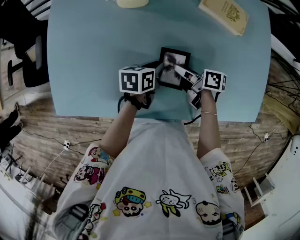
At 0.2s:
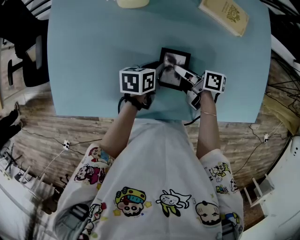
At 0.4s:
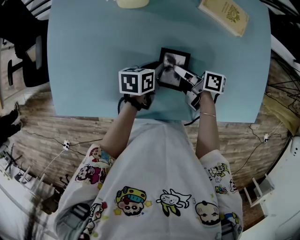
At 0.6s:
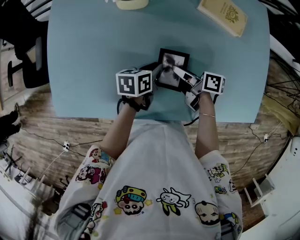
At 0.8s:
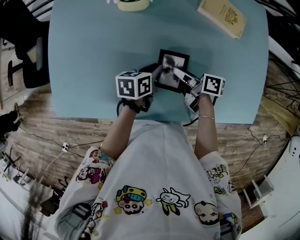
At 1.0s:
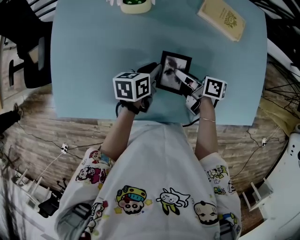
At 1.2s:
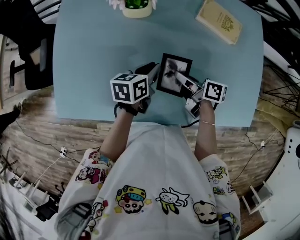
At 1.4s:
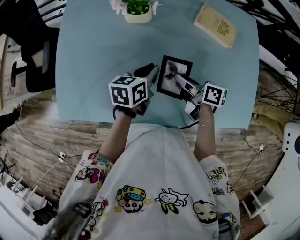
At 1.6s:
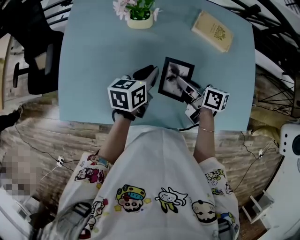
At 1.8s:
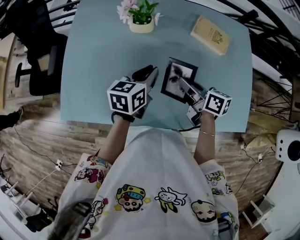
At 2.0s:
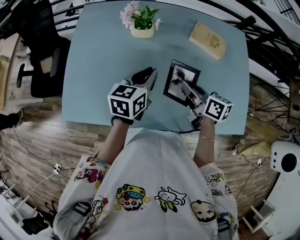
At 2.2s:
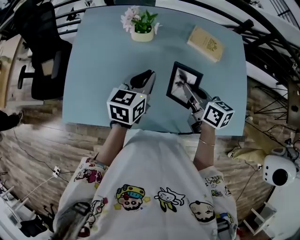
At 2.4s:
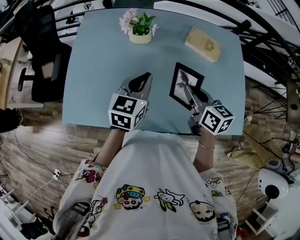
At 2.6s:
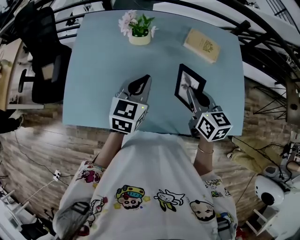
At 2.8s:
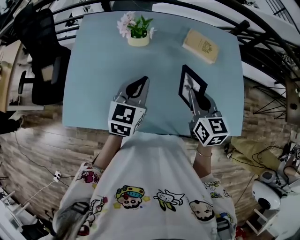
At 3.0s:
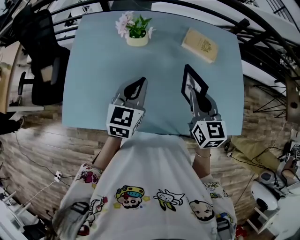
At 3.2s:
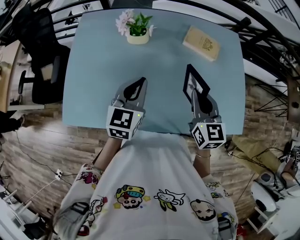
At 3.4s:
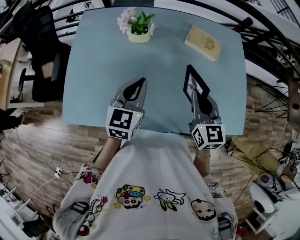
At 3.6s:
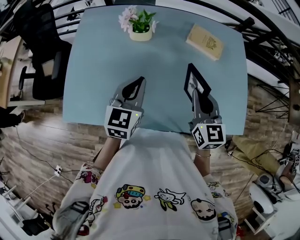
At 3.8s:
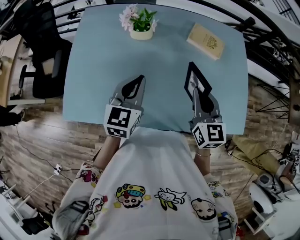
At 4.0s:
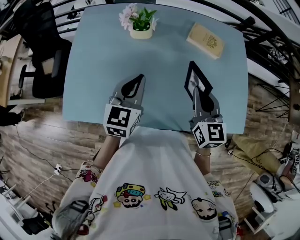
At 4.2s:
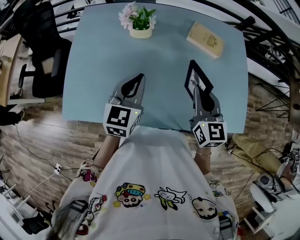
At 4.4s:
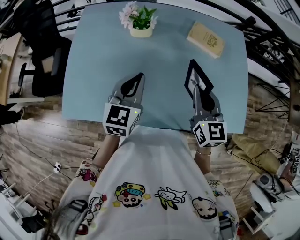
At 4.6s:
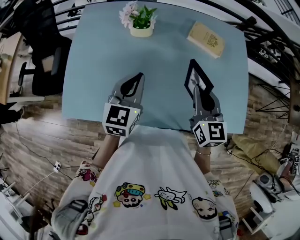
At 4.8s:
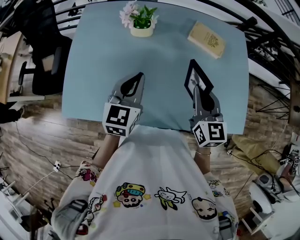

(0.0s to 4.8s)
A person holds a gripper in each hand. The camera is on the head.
0.0s - 1.6s: The grippers both shift upward by roughly 10 cm. The left gripper turns by about 20 degrees.
1.6s - 3.2s: The right gripper moves upward and to the right, approximately 15 cm, and changes its angle by some 60 degrees. Meanwhile the left gripper travels upward and backward by some 15 cm, and turns by approximately 30 degrees.
3.2s - 4.8s: The grippers move only a little.

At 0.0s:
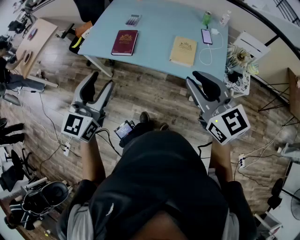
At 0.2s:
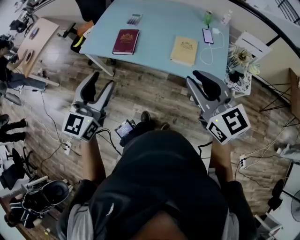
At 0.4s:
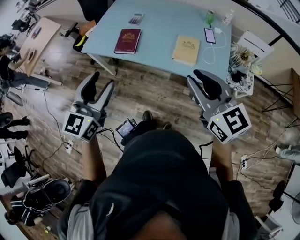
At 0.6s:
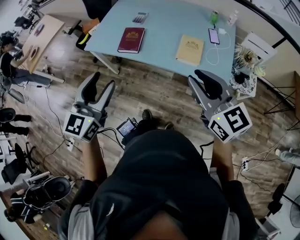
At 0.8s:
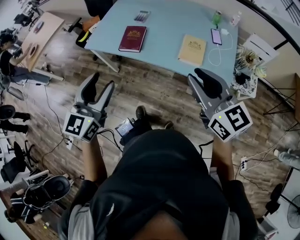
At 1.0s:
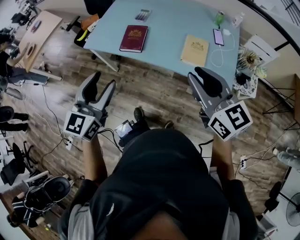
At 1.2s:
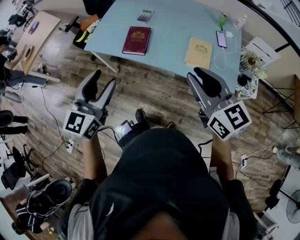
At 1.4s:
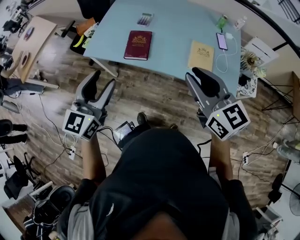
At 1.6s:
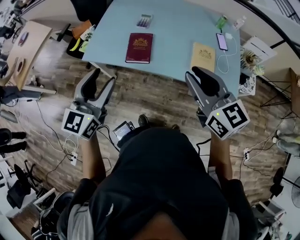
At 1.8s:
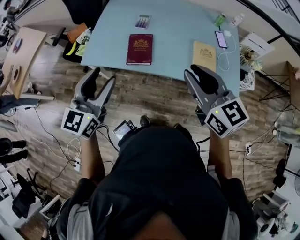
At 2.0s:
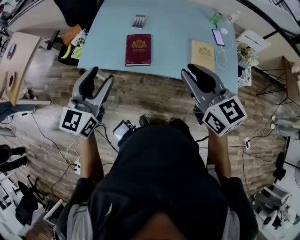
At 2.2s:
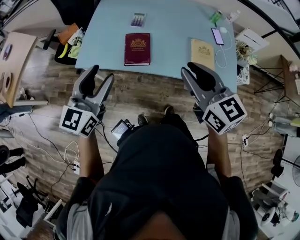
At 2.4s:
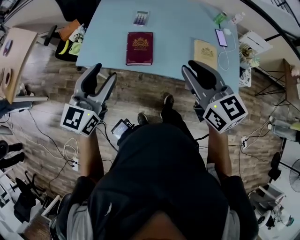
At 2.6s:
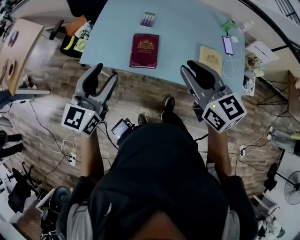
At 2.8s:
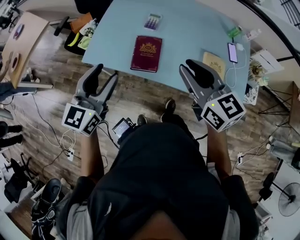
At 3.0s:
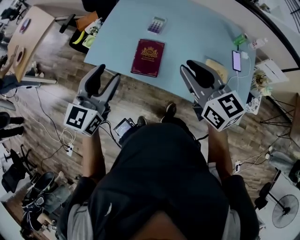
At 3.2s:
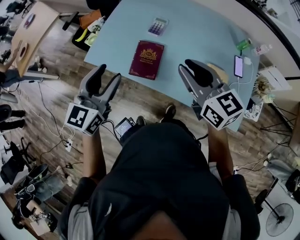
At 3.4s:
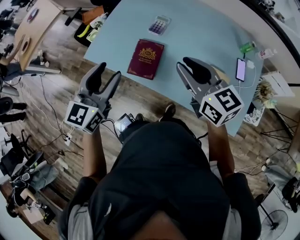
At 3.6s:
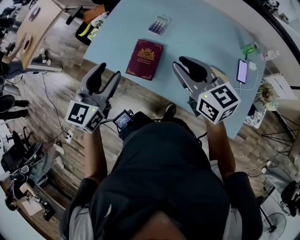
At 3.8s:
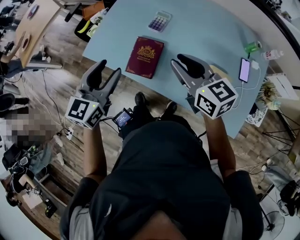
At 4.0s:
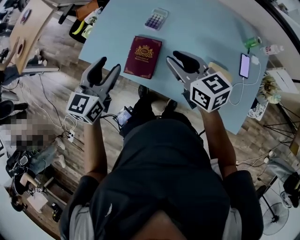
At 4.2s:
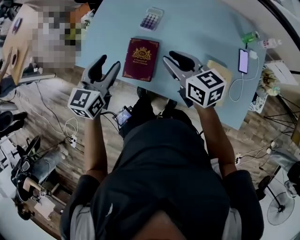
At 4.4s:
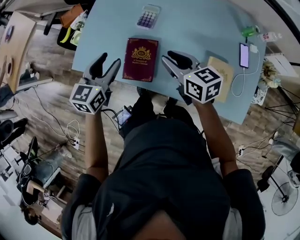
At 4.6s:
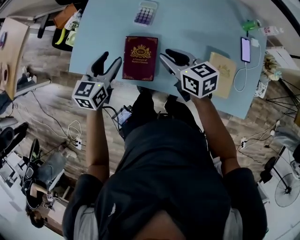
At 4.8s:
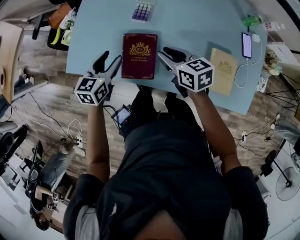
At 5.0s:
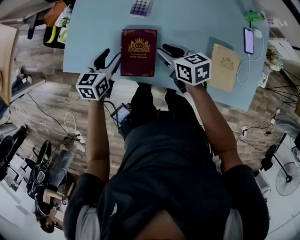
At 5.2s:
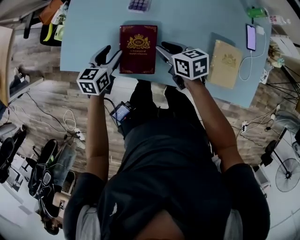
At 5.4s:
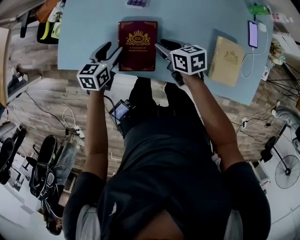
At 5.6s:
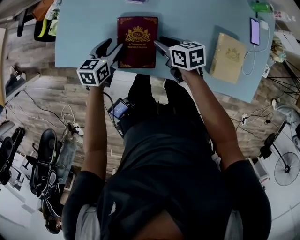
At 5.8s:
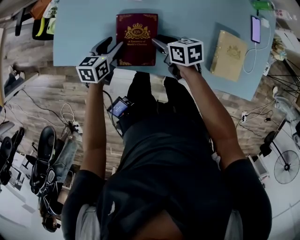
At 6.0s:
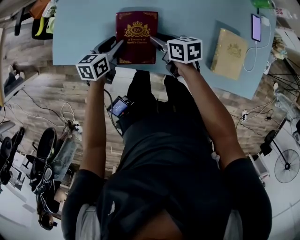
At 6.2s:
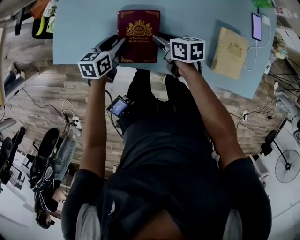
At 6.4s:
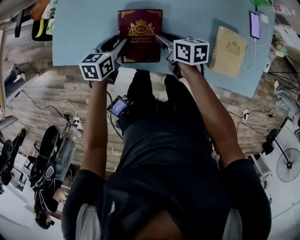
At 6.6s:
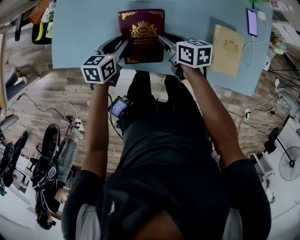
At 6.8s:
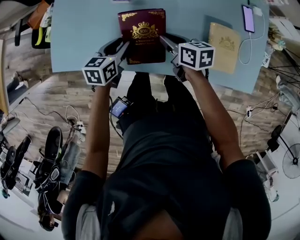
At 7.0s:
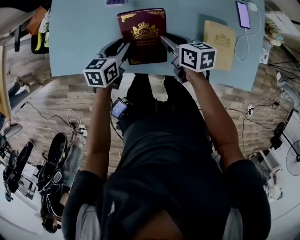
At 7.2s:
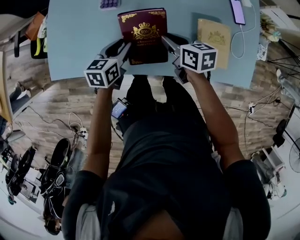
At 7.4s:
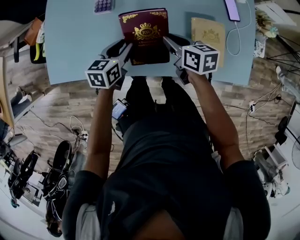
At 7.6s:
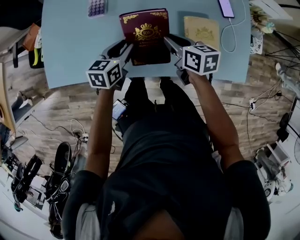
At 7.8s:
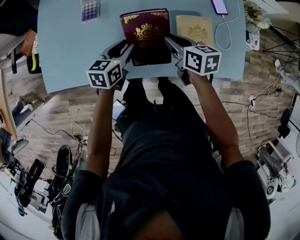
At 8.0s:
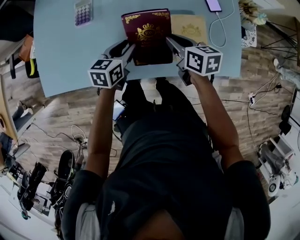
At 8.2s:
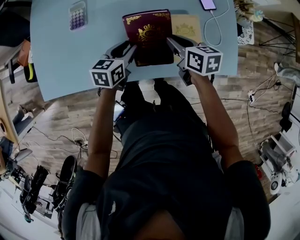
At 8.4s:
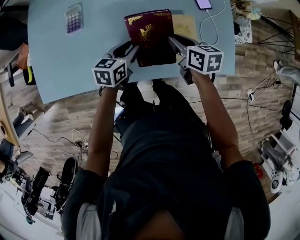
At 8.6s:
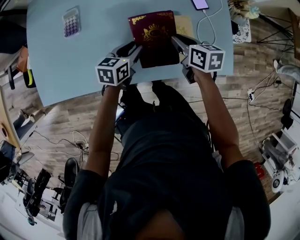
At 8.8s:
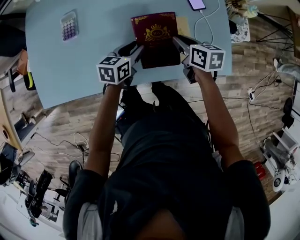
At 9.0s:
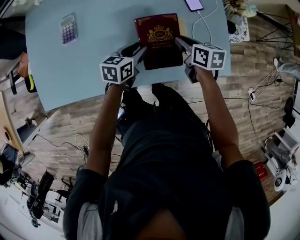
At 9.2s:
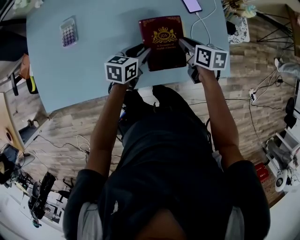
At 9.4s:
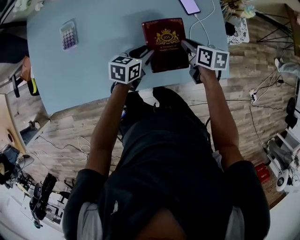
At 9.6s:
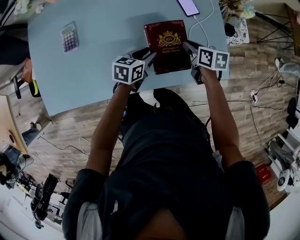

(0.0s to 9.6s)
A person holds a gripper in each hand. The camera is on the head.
0.0s - 1.6s: The right gripper moves to the left and forward, roughly 20 cm, while the left gripper shifts roughly 20 cm forward and to the left.
1.6s - 3.2s: The two grippers go roughly 20 cm forward.
3.2s - 4.8s: Both grippers travel together downward and forward, roughly 30 cm. The left gripper rotates roughly 30 degrees; the right gripper swivels about 30 degrees.
4.8s - 6.4s: Both grippers move downward, roughly 15 cm. The right gripper rotates approximately 20 degrees.
6.4s - 8.0s: Both grippers move to the right, roughly 25 cm.
8.0s - 9.6s: The grippers both shift to the right by approximately 20 cm.

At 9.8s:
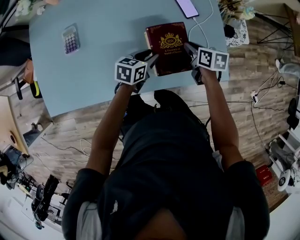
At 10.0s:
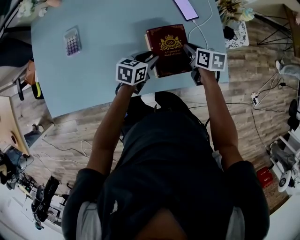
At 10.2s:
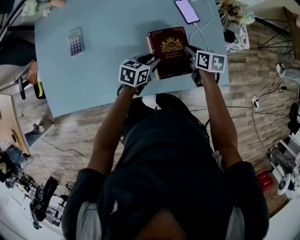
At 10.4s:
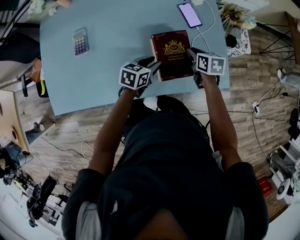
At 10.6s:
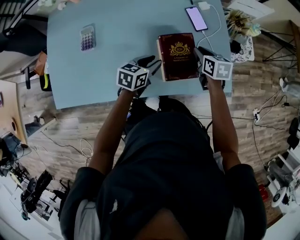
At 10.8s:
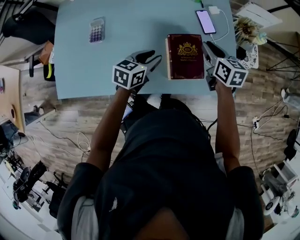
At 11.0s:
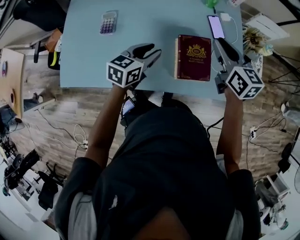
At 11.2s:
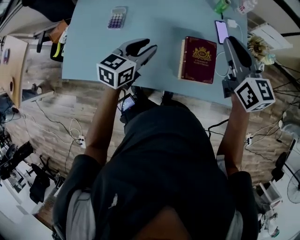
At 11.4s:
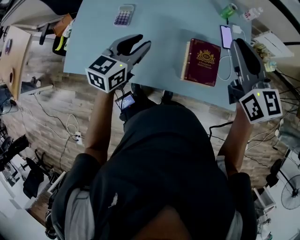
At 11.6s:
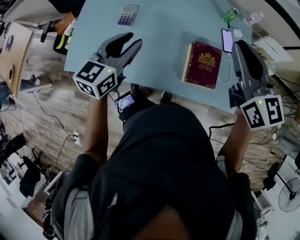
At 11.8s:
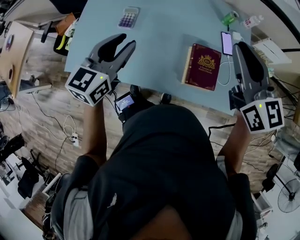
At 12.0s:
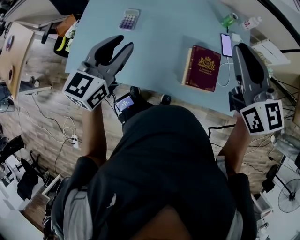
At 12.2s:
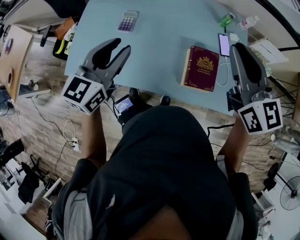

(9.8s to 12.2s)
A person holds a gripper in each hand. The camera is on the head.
9.8s - 11.0s: The left gripper goes some 20 cm upward and to the left; the right gripper heads upward, covering some 25 cm, and rotates roughly 40 degrees.
11.0s - 12.2s: Both grippers travel together upward and to the left, some 25 cm. The right gripper changes its angle by approximately 20 degrees, while the left gripper rotates about 30 degrees.

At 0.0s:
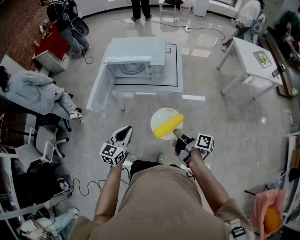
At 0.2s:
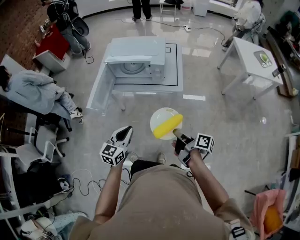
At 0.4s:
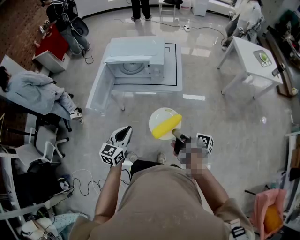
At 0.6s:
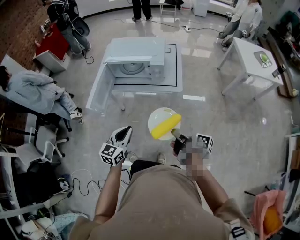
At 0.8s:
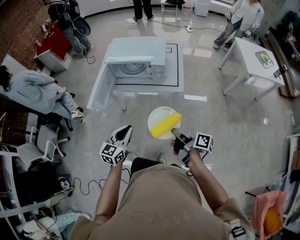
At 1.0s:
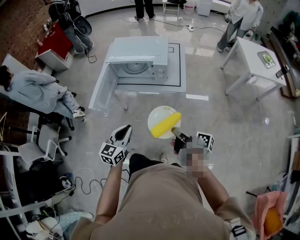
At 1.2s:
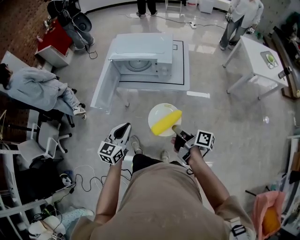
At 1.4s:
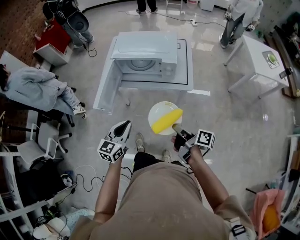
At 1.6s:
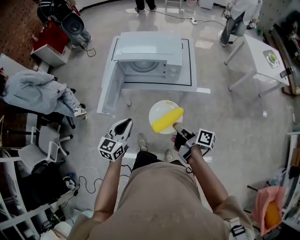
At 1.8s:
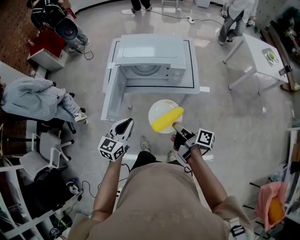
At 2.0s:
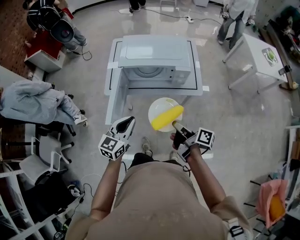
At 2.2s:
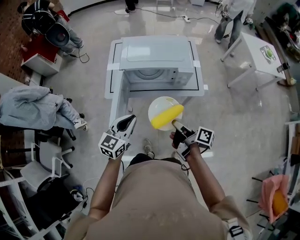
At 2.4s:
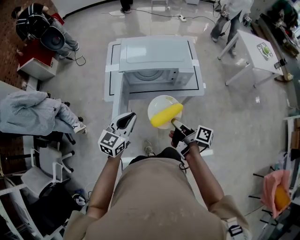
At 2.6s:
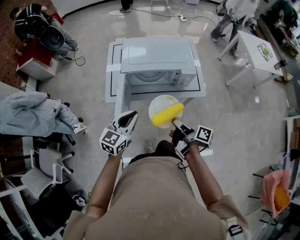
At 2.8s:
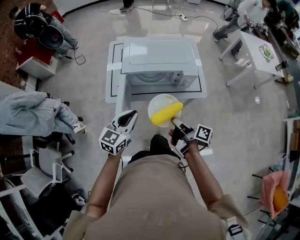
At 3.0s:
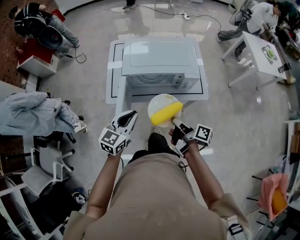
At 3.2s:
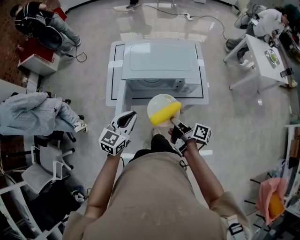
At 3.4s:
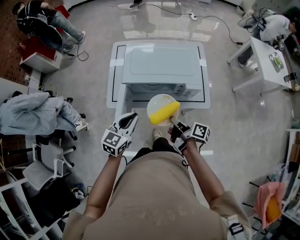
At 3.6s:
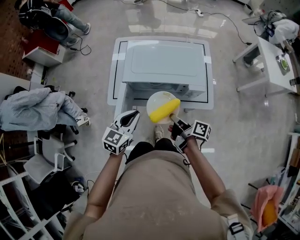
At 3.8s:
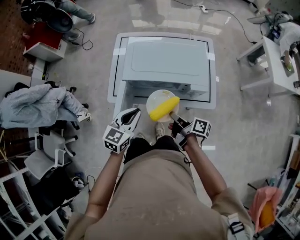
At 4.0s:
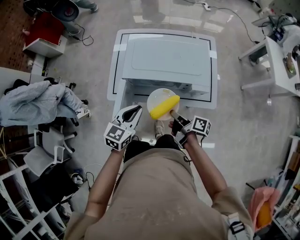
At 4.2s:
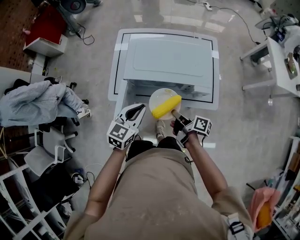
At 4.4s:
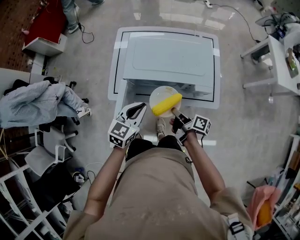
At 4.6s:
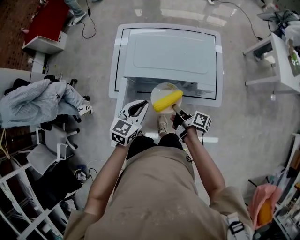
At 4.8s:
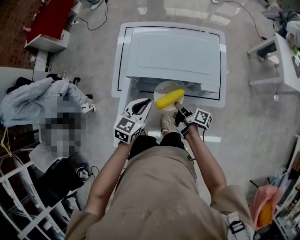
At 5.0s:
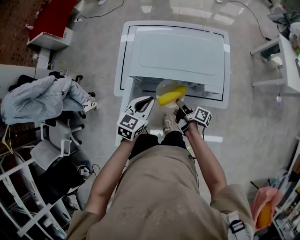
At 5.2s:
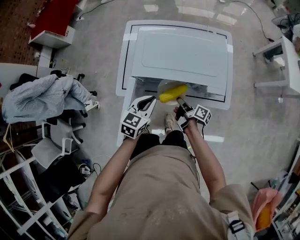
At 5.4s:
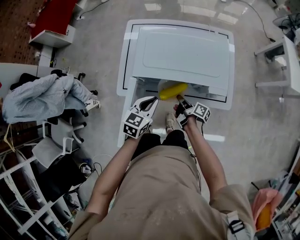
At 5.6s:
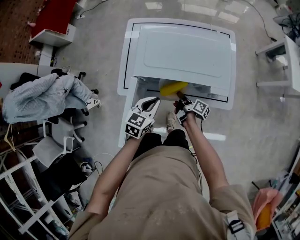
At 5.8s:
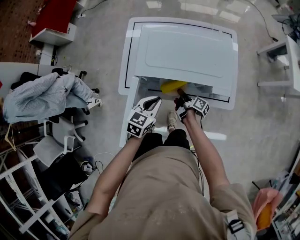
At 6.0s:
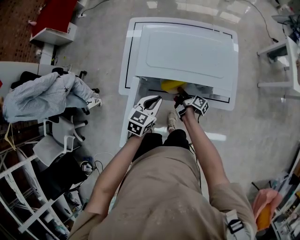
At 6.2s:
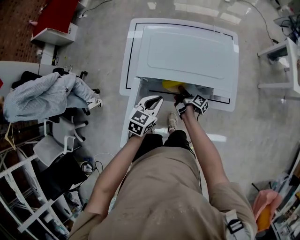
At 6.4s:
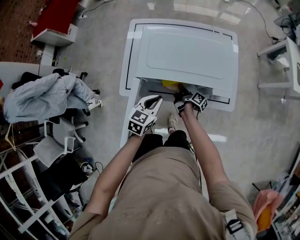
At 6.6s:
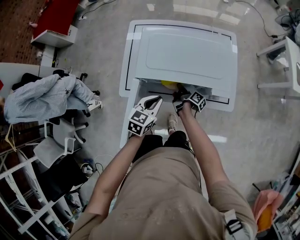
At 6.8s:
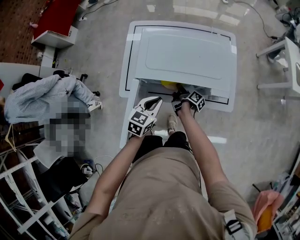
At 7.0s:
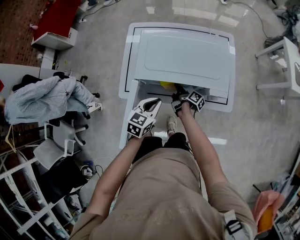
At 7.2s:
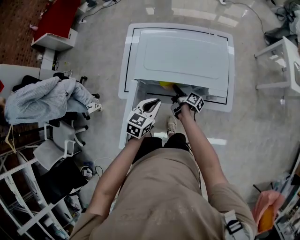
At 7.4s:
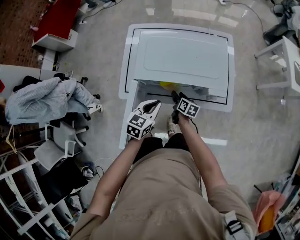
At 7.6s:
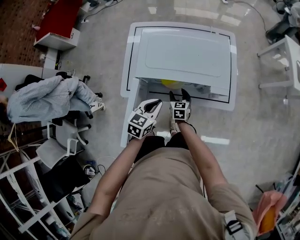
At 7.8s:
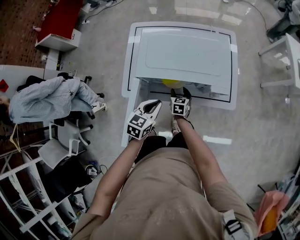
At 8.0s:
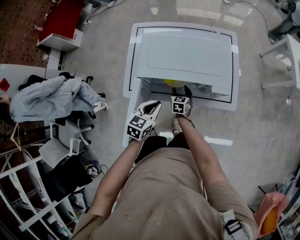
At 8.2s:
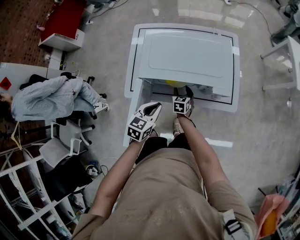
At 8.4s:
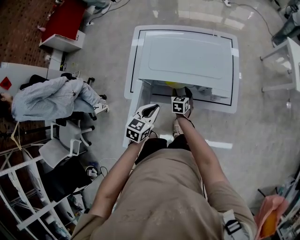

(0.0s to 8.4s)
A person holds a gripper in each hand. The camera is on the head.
0.0s - 1.4s: Both grippers move to the left and forward, about 10 cm.
1.4s - 2.8s: The right gripper shifts about 25 cm to the left and forward. The left gripper shifts about 25 cm forward and to the left.
2.8s - 4.2s: The right gripper is displaced forward and downward by roughly 15 cm, while the left gripper goes some 10 cm forward.
4.2s - 5.6s: The right gripper heads downward and forward, covering roughly 15 cm, while the left gripper goes approximately 10 cm downward.
5.6s - 7.0s: The right gripper is displaced forward by roughly 5 cm, and opens up.
7.0s - 8.4s: The right gripper twists roughly 70 degrees counterclockwise, seen from behind, and opens up.
